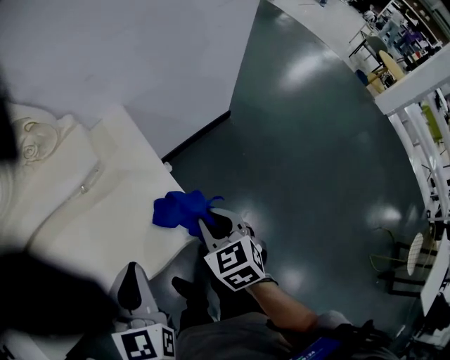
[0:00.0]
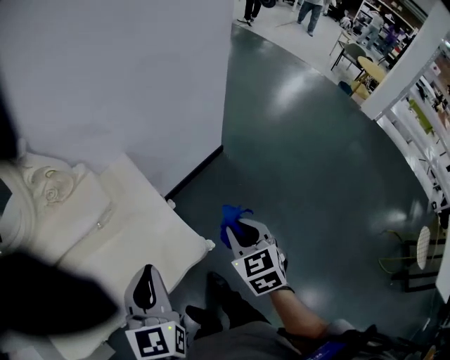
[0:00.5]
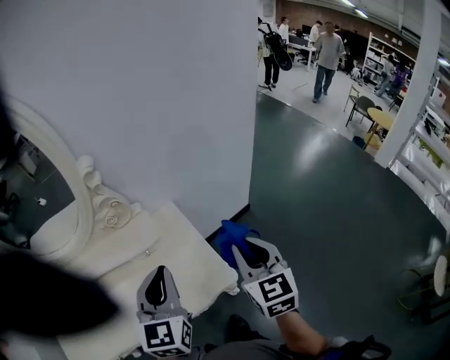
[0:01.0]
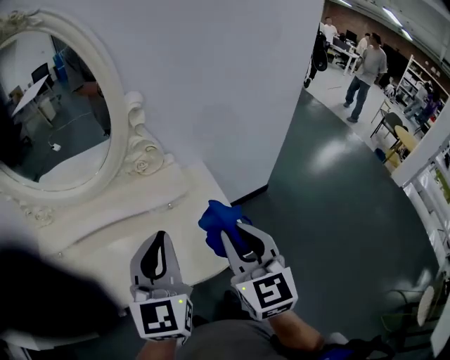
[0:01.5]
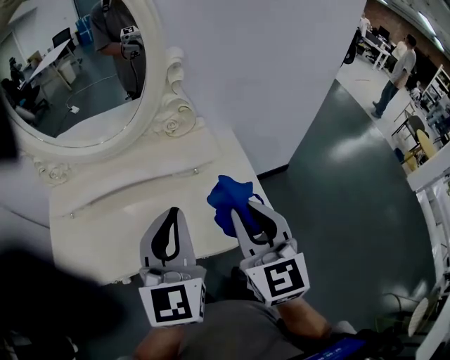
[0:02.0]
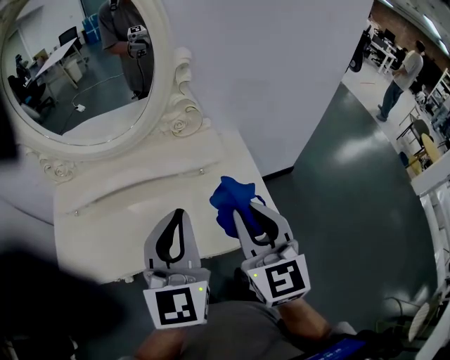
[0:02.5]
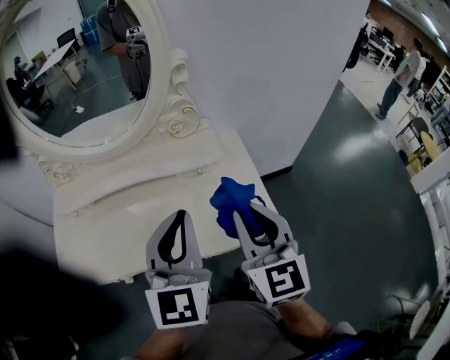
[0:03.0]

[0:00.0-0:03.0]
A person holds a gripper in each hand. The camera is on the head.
0:00.0 to 0:01.5: Both grippers move upward and to the left, some 25 cm. The left gripper swivels roughly 30 degrees. The right gripper points its fingers approximately 30 degrees further upward.
0:01.5 to 0:03.0: The right gripper is displaced to the left by roughly 5 cm.

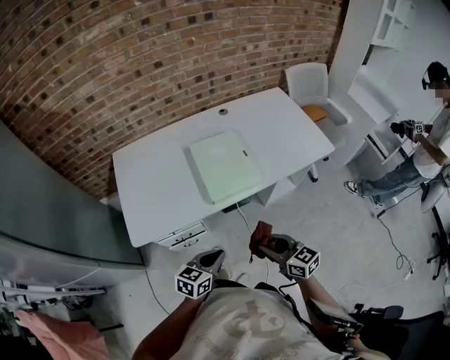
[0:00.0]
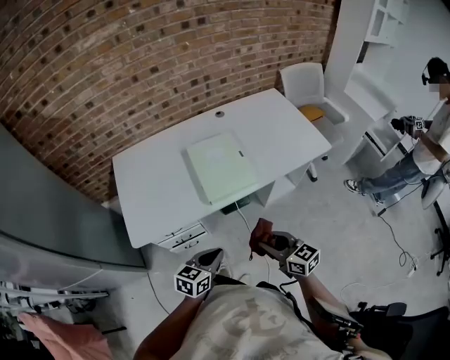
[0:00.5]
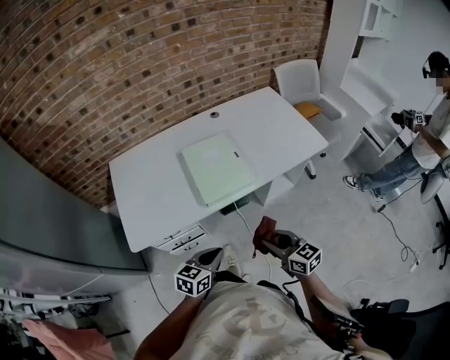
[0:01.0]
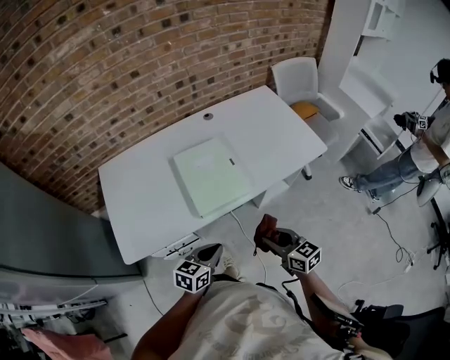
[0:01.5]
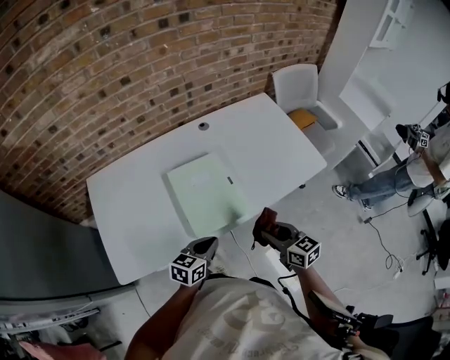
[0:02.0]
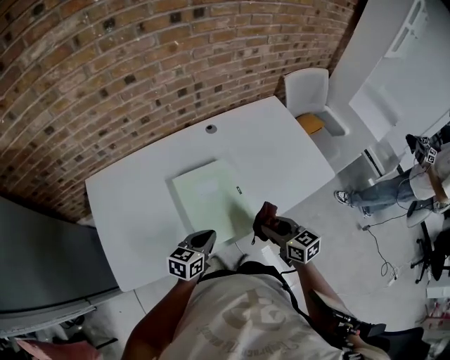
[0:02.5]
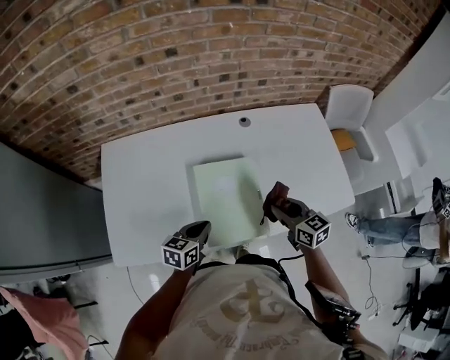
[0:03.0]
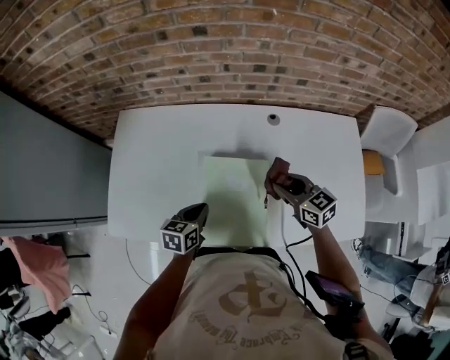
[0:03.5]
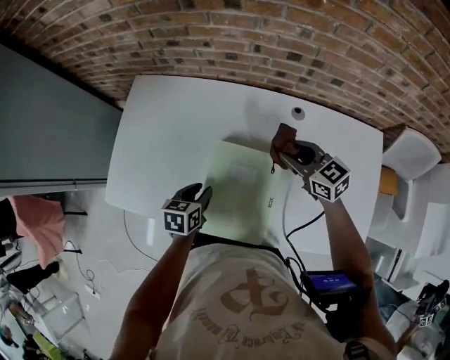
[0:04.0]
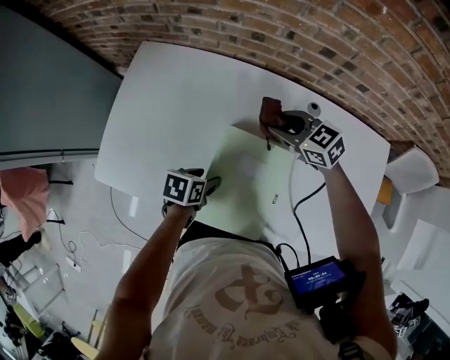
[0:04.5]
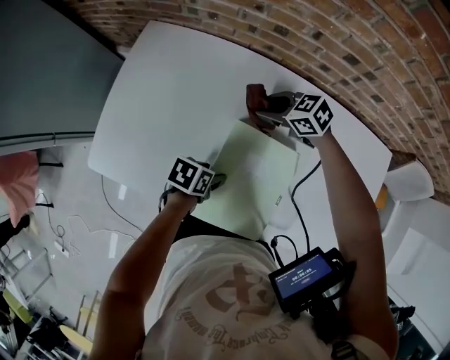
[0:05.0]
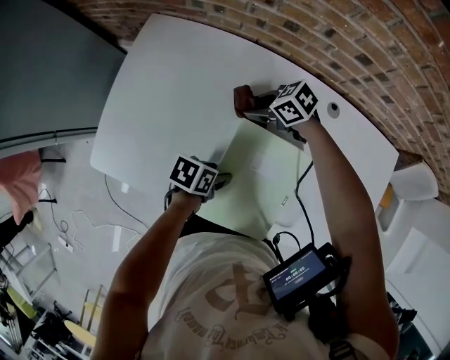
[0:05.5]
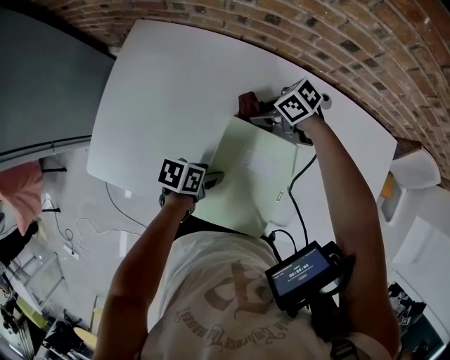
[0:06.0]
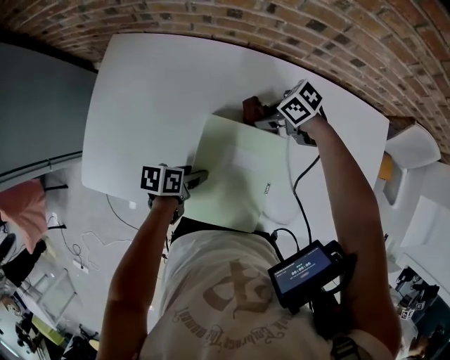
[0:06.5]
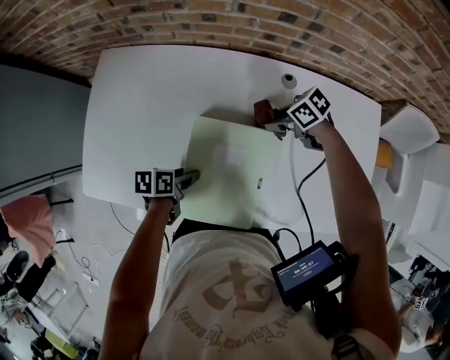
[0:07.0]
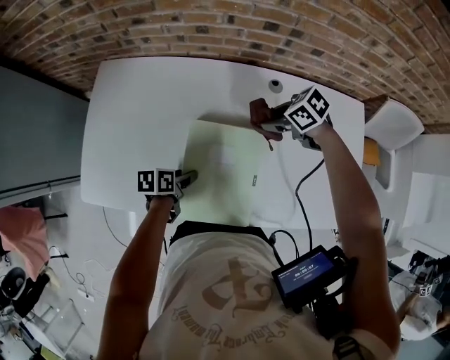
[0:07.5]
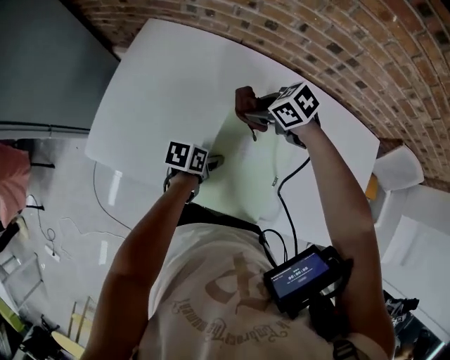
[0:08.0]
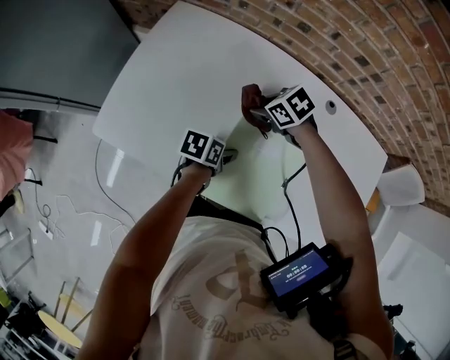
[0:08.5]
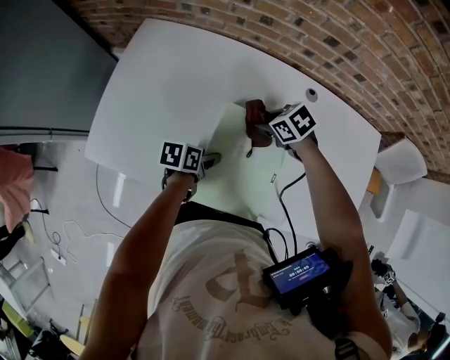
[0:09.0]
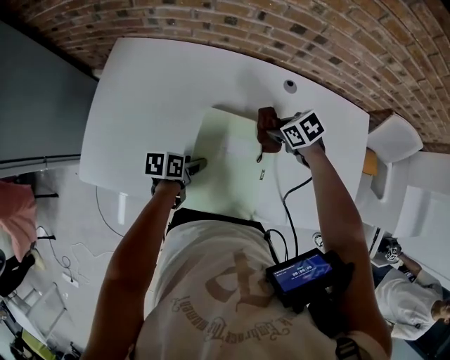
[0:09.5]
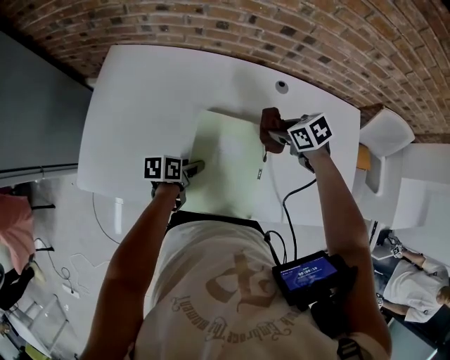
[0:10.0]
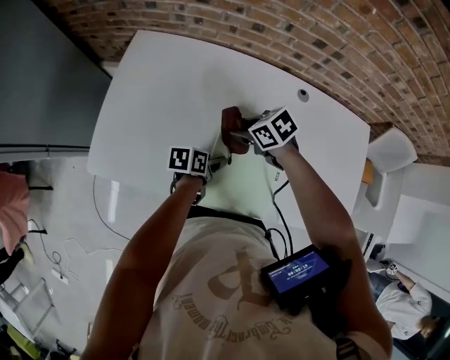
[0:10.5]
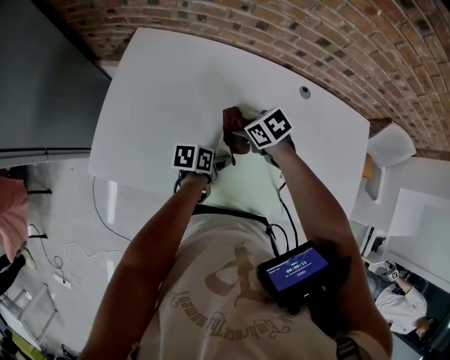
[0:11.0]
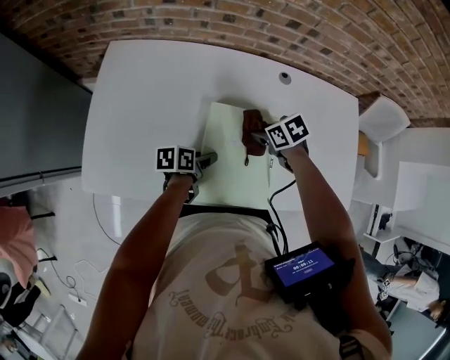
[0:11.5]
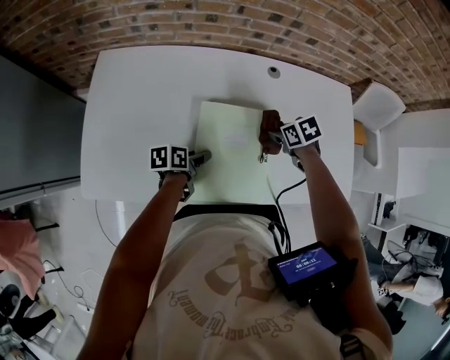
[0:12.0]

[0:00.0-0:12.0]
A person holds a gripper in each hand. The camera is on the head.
0:00.0 to 0:02.0: The left gripper travels forward by approximately 20 cm; the right gripper travels forward and to the right by some 20 cm.
0:02.0 to 0:04.0: The left gripper changes place by some 20 cm, turns by about 50 degrees, and opens up. Meanwhile the right gripper changes place by some 40 cm, and swivels roughly 50 degrees.
0:04.0 to 0:06.0: The right gripper shifts by some 20 cm, and changes its angle by about 50 degrees. The left gripper shifts about 5 cm downward, swivels roughly 30 degrees, and opens its fingers.
0:06.0 to 0:08.0: The right gripper shifts about 10 cm upward.
0:08.0 to 0:10.0: The right gripper changes place by approximately 20 cm, and turns by roughly 30 degrees.

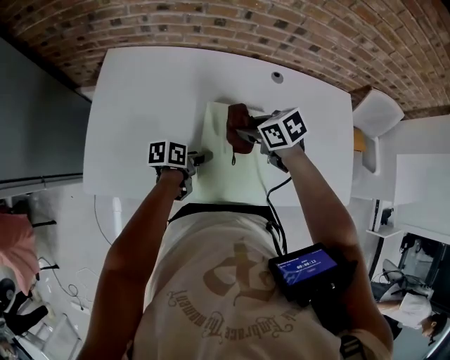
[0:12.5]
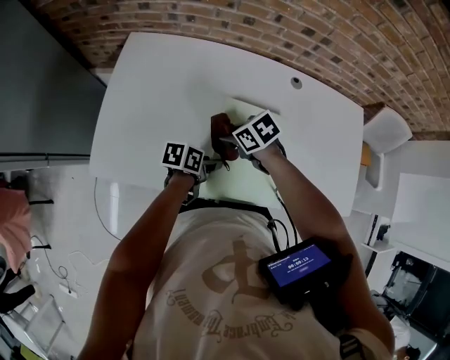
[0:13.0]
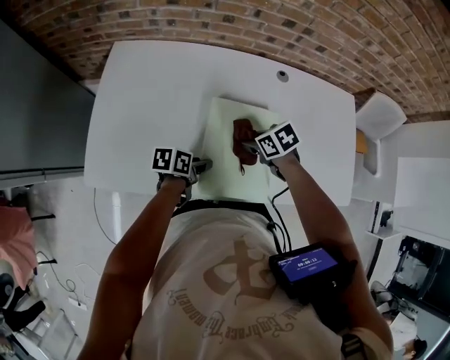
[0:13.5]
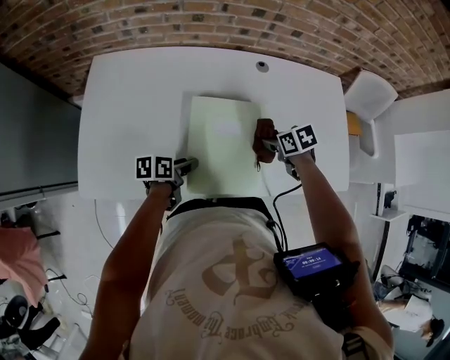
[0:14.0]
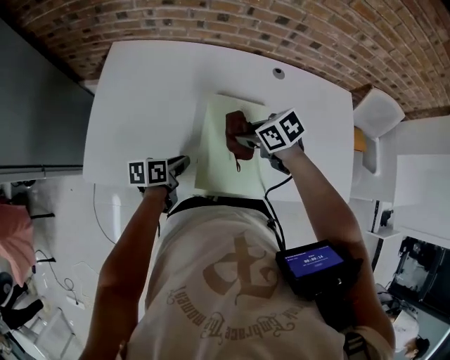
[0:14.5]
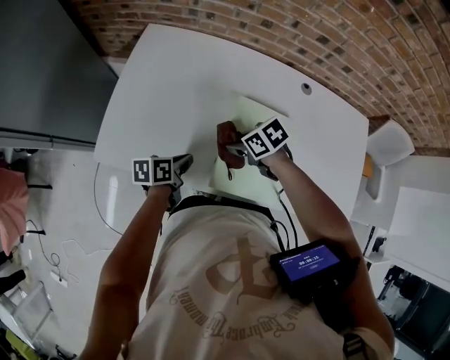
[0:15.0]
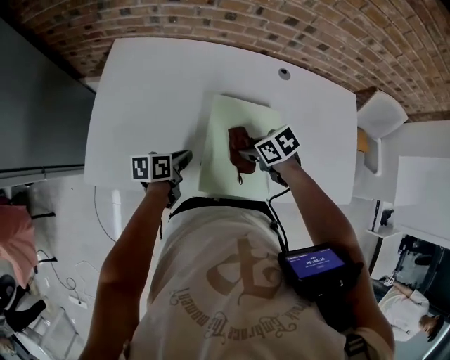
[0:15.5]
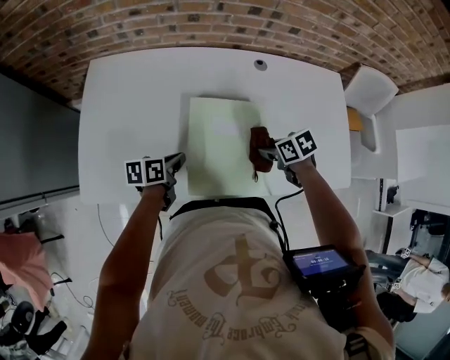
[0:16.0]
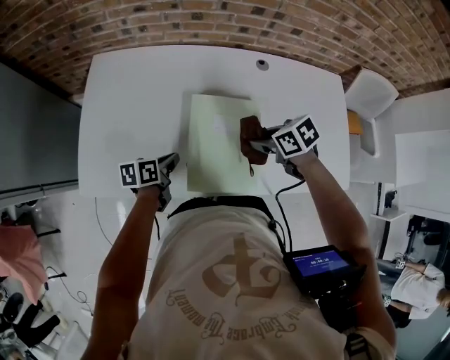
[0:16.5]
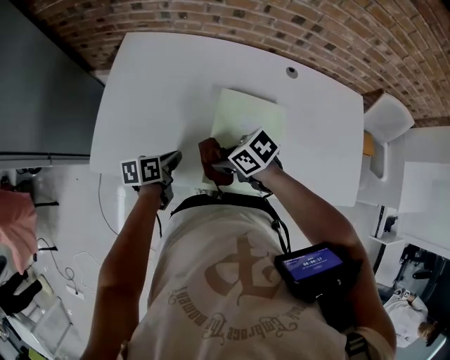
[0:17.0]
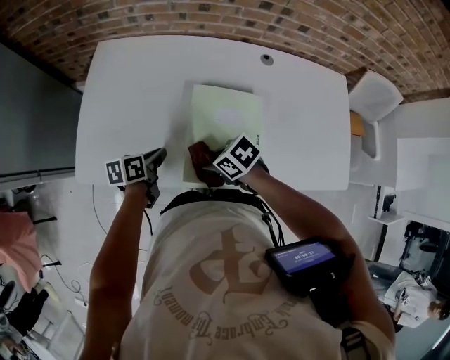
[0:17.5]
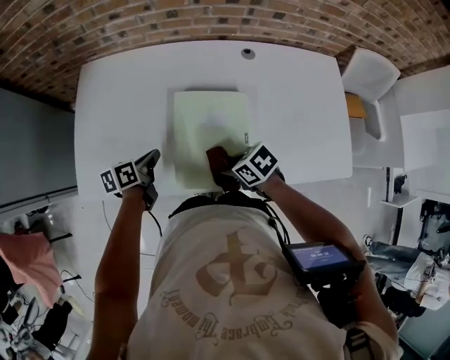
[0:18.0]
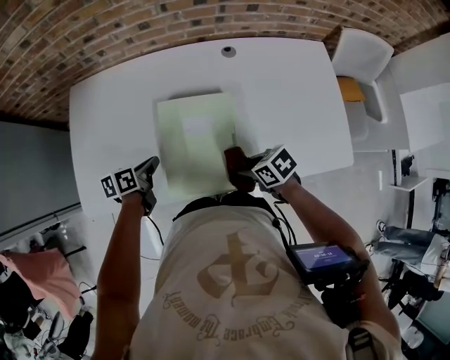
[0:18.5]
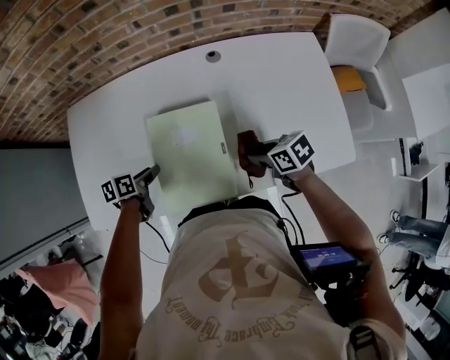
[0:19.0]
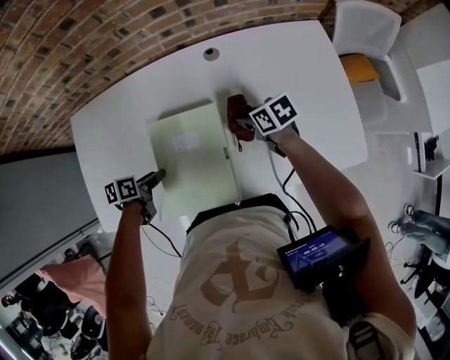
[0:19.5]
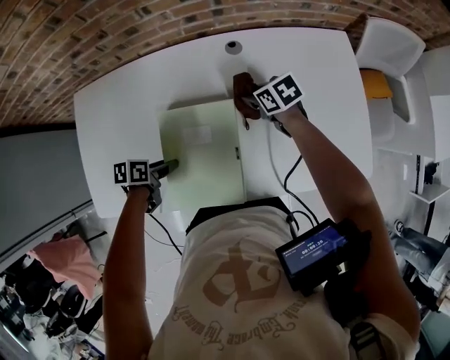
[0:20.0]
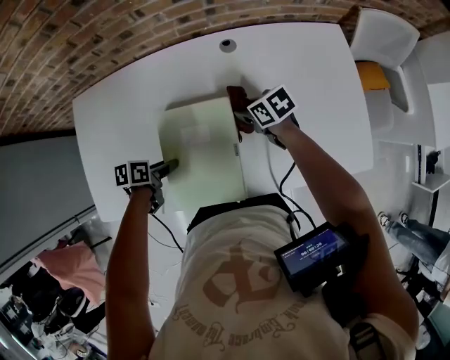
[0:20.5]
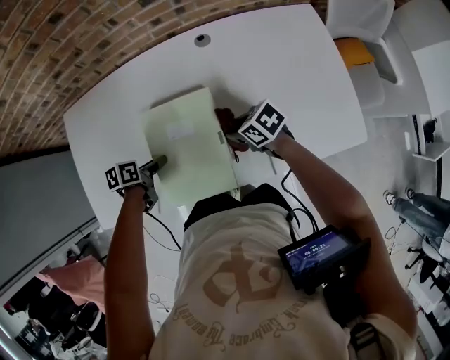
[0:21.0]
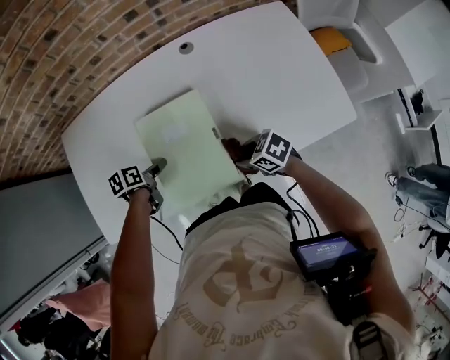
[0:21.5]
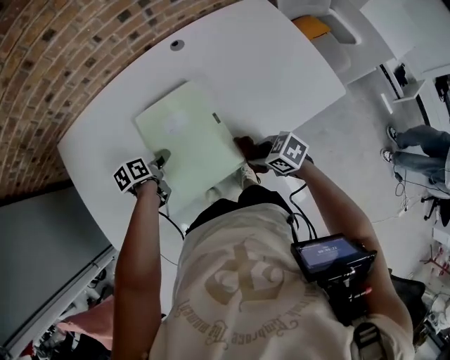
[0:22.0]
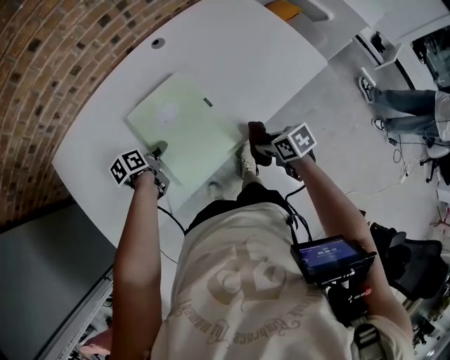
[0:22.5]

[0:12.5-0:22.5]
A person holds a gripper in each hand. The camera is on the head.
0:12.5 to 0:14.5: The left gripper shifts by about 5 cm, and closes up.
0:16.5 to 0:18.5: The right gripper ends up some 15 cm from where it was.
0:18.5 to 0:20.5: The right gripper changes place by roughly 20 cm; the left gripper shifts by roughly 5 cm, changes its angle by approximately 20 degrees, and opens.
0:20.5 to 0:22.5: The right gripper changes place by some 30 cm, and swivels roughly 30 degrees.

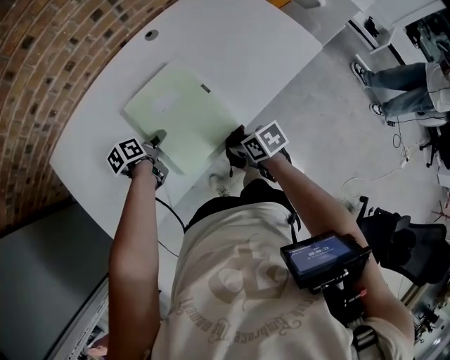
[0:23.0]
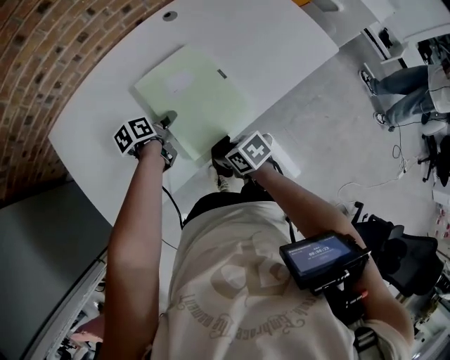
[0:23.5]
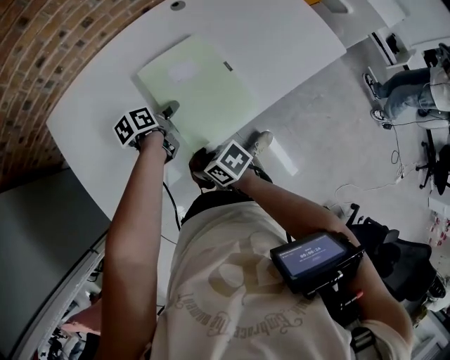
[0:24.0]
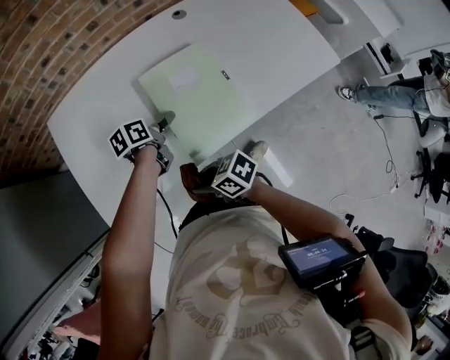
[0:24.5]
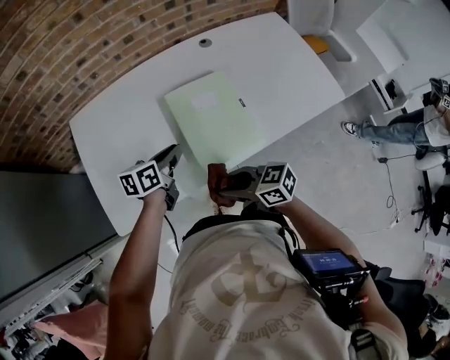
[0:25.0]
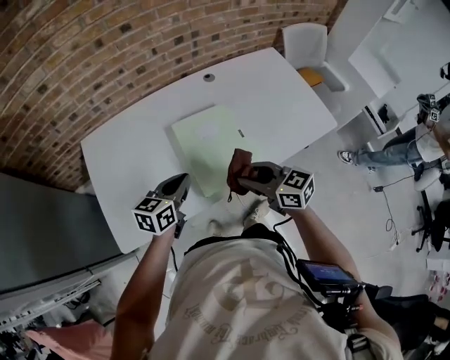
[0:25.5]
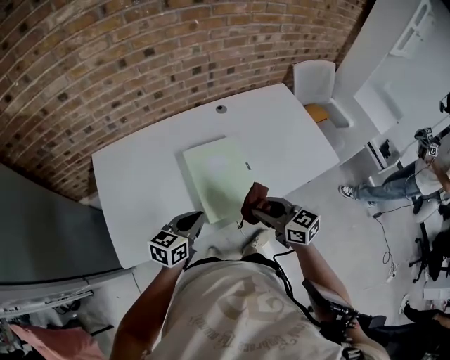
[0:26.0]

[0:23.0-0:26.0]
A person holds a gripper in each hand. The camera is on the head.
0:23.0 to 0:24.5: The right gripper moves roughly 20 cm, and swivels approximately 40 degrees.
0:24.5 to 0:26.0: The left gripper shifts about 15 cm upward, rotates around the line of its fingers by roughly 40 degrees, clockwise from behind, and closes its fingers. Meanwhile the right gripper moves approximately 25 cm, and rotates some 40 degrees.
